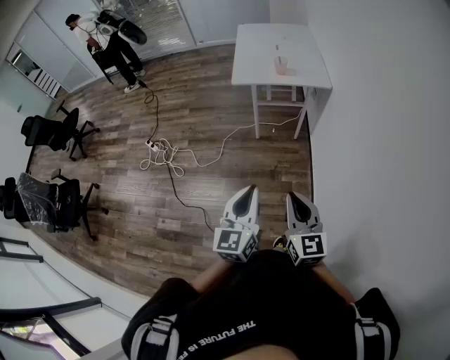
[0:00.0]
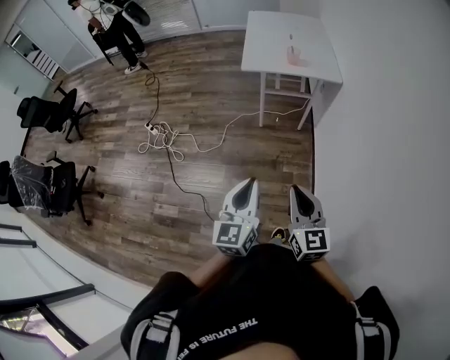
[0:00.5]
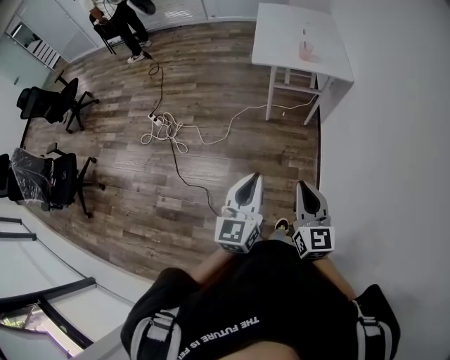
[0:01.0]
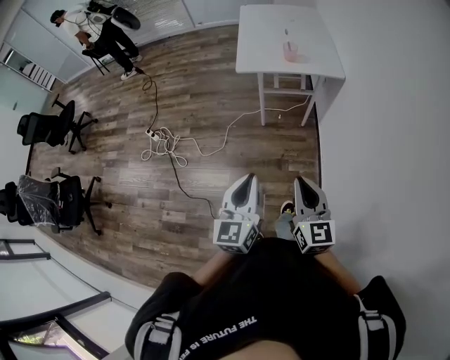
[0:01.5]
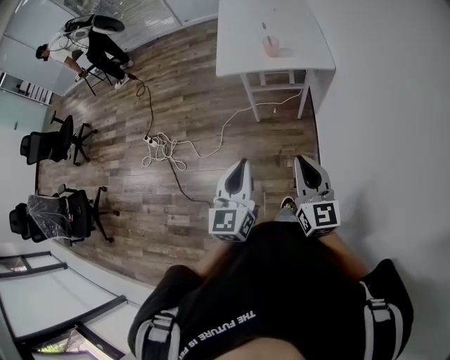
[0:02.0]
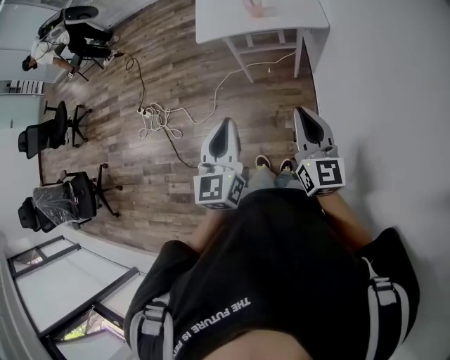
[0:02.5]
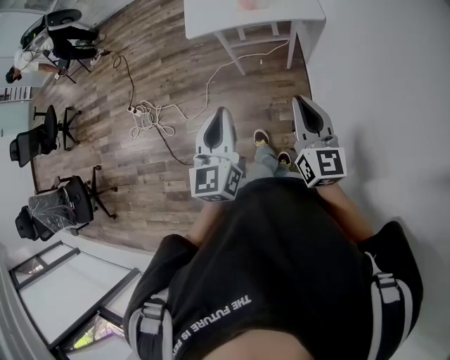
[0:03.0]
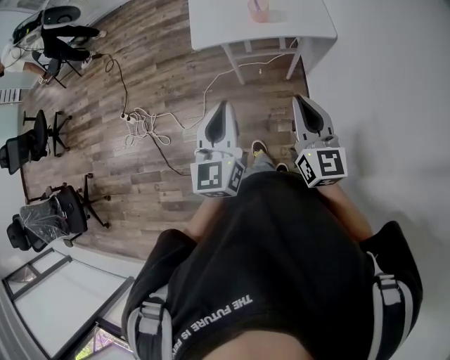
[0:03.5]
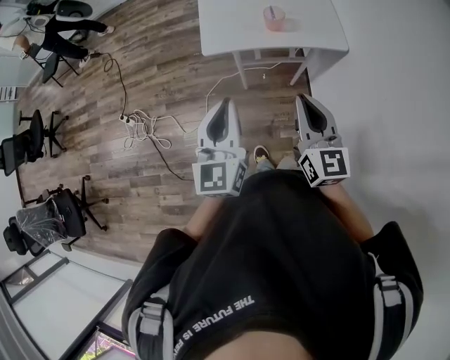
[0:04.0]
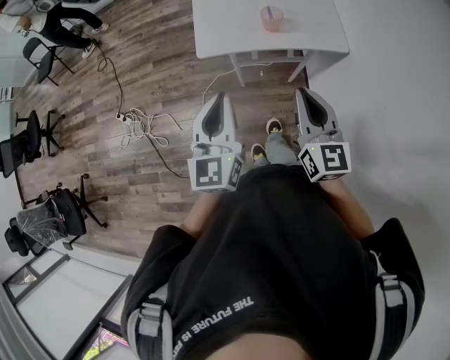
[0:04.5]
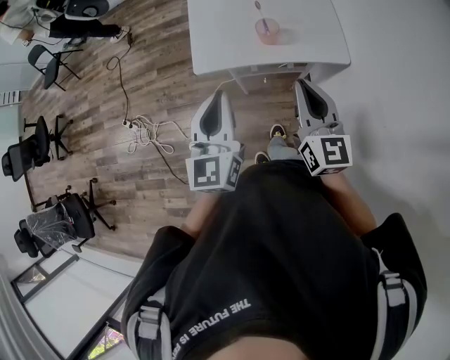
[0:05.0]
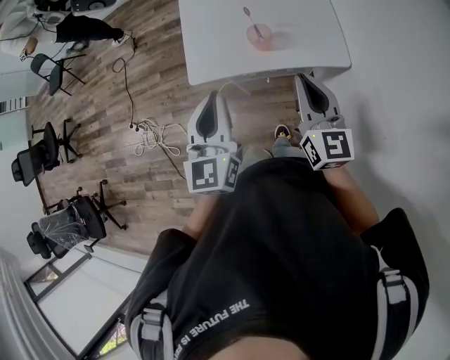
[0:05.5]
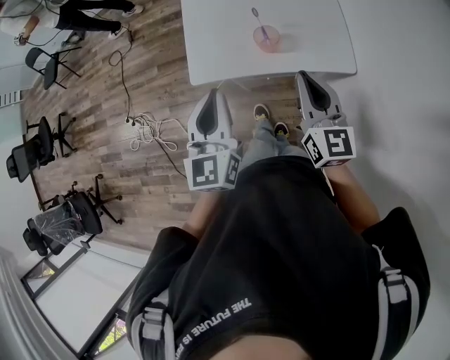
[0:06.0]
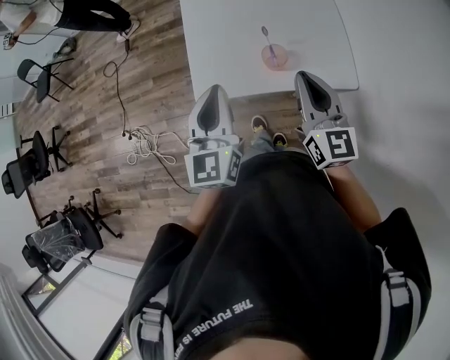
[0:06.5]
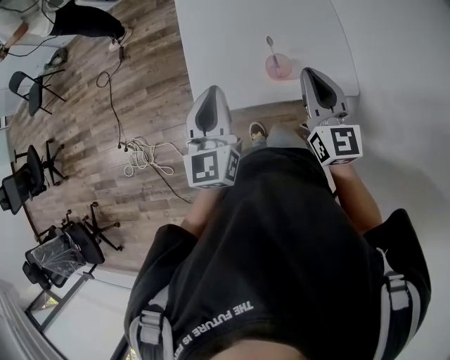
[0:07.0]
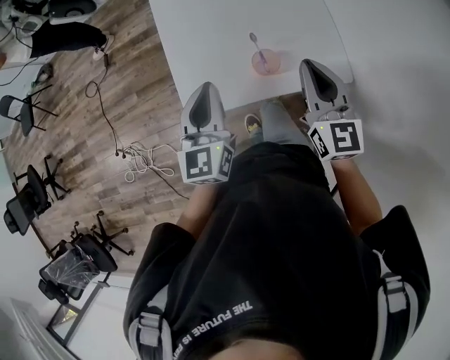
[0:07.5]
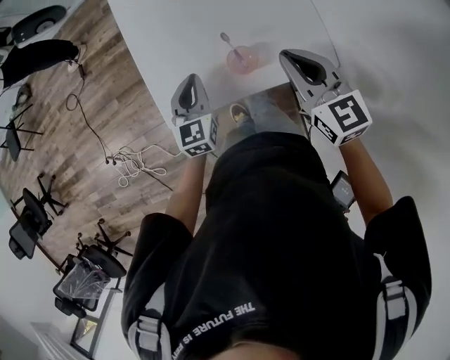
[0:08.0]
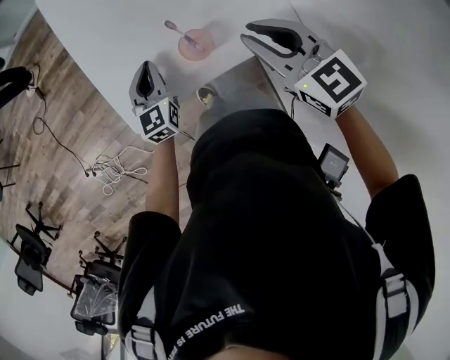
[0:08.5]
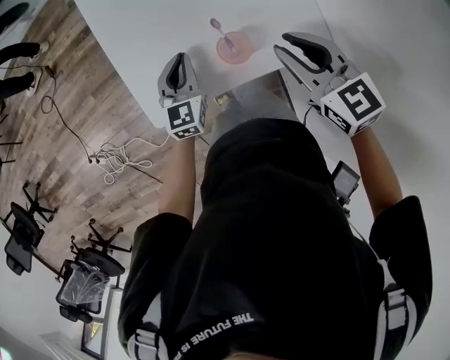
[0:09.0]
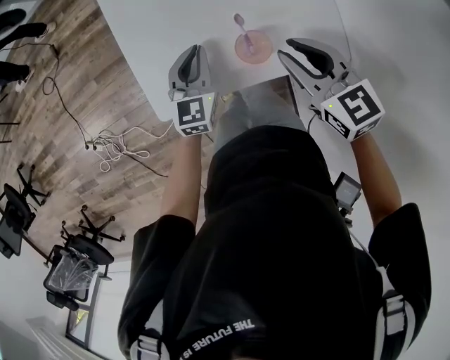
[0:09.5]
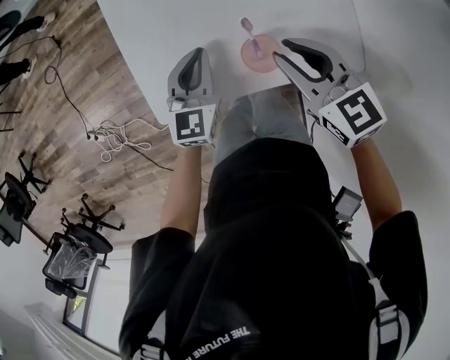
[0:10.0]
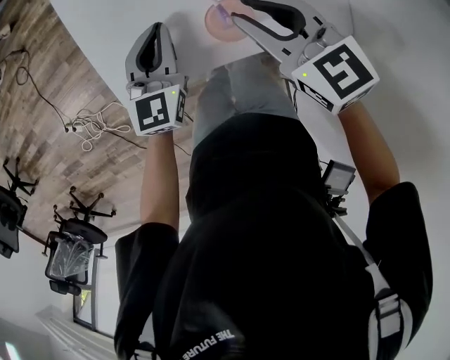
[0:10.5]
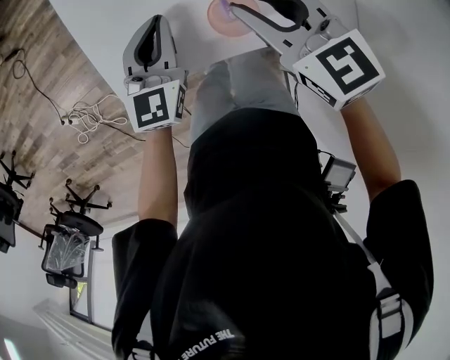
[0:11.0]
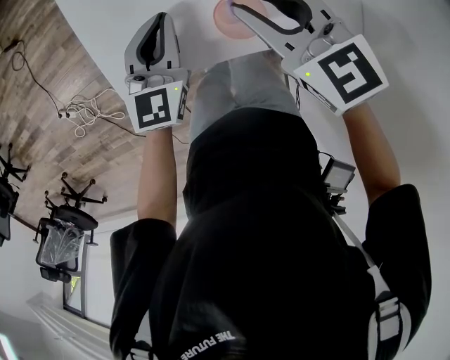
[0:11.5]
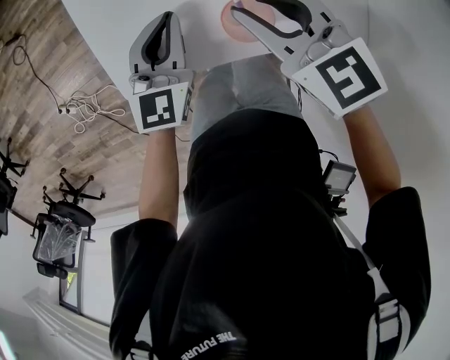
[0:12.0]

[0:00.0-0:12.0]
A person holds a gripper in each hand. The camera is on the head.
0.0 to 2.0 s: The grippers both shift forward by approximately 20 cm.
2.0 to 4.0 s: Both grippers travel together forward, roughly 25 cm.
4.0 to 6.0 s: Both grippers travel together forward, about 20 cm.
6.0 to 8.0 s: The left gripper goes some 25 cm forward and downward, while the right gripper heads forward, covering approximately 15 cm.
8.0 to 10.0 s: The left gripper goes approximately 5 cm downward; the right gripper shifts about 10 cm downward, and opens up.
10.0 to 12.0 s: The right gripper changes place by about 5 cm.

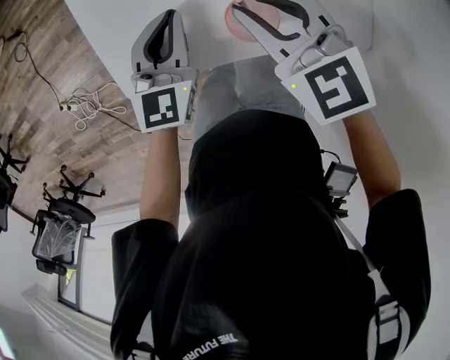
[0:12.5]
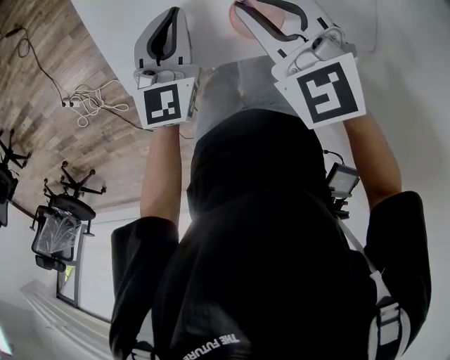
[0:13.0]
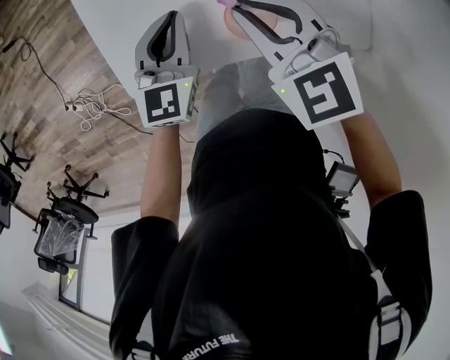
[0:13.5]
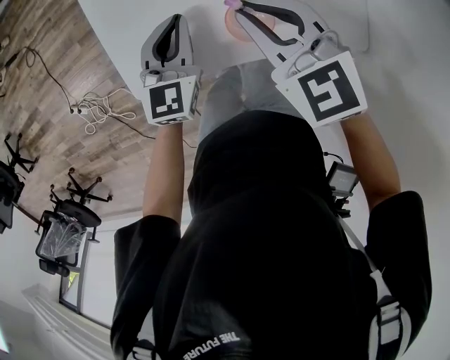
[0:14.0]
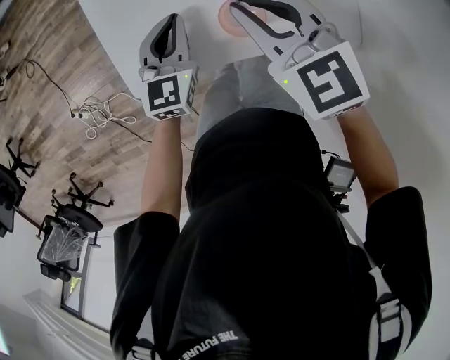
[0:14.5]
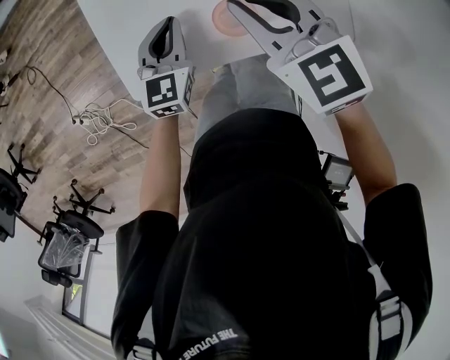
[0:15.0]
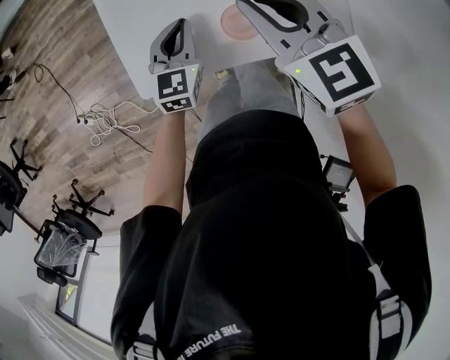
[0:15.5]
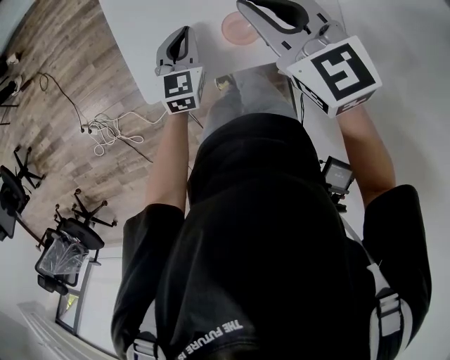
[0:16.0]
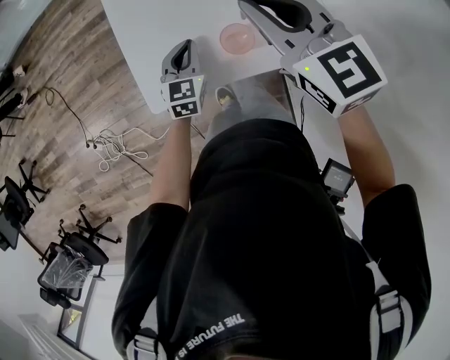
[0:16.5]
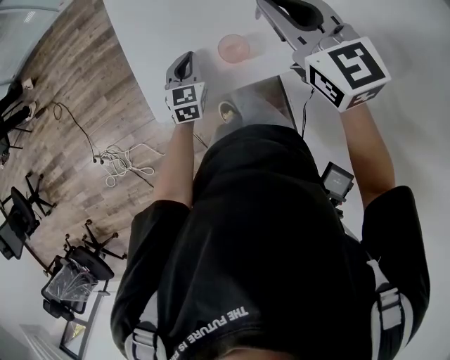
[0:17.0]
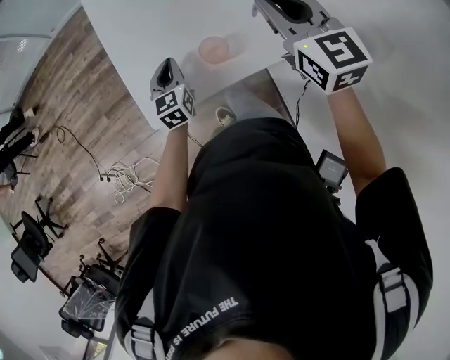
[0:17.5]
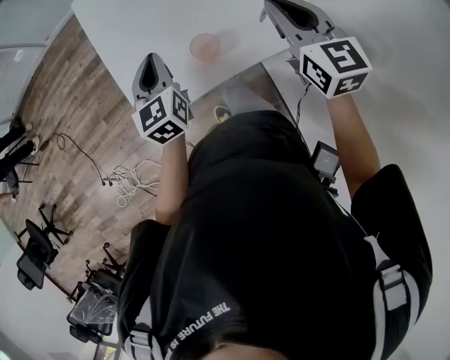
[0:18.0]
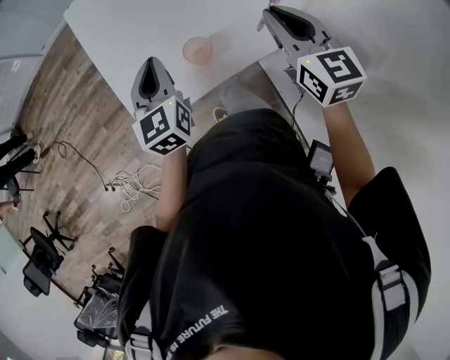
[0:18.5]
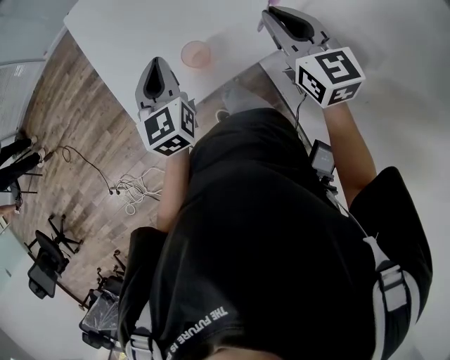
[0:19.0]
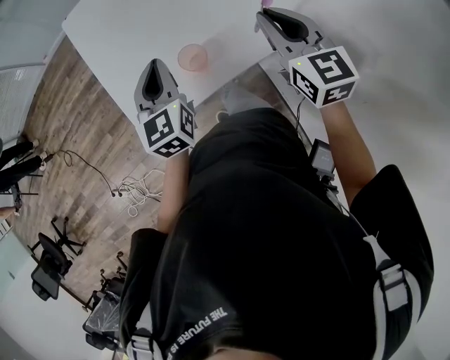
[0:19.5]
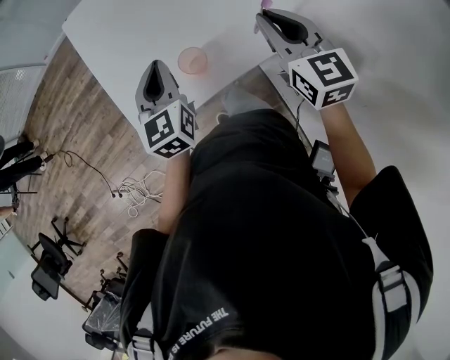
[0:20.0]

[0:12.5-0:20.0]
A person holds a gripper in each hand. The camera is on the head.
12.5 to 14.5 s: There are only small adjustments of the grippers.
14.5 to 16.5 s: The right gripper goes roughly 10 cm upward.
16.5 to 18.0 s: The right gripper moves to the right, some 15 cm, and changes its angle by about 20 degrees. The left gripper heads upward, covering some 20 cm.
18.0 to 20.0 s: The left gripper goes approximately 5 cm to the right.

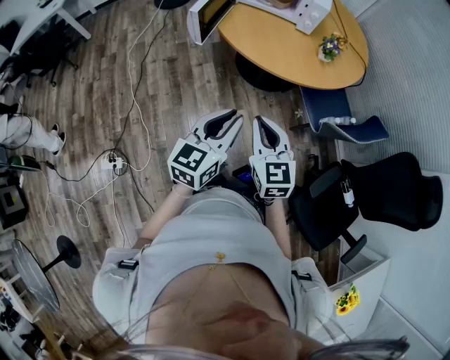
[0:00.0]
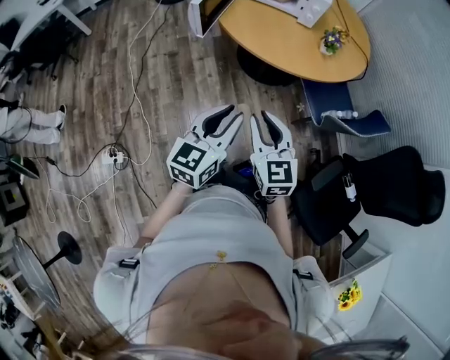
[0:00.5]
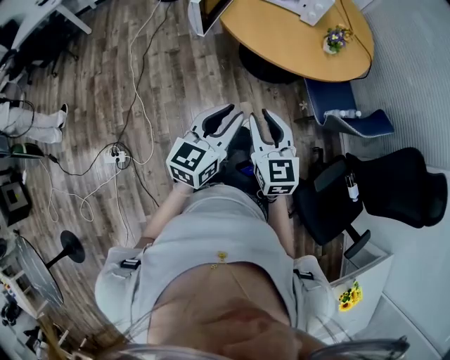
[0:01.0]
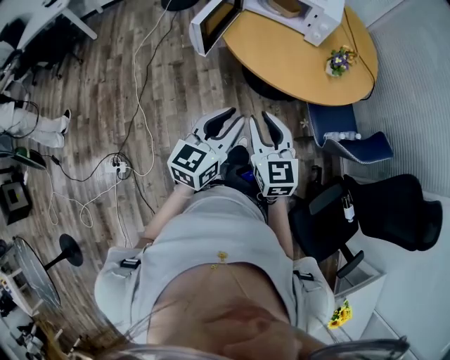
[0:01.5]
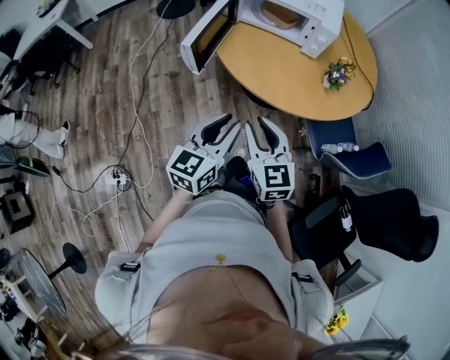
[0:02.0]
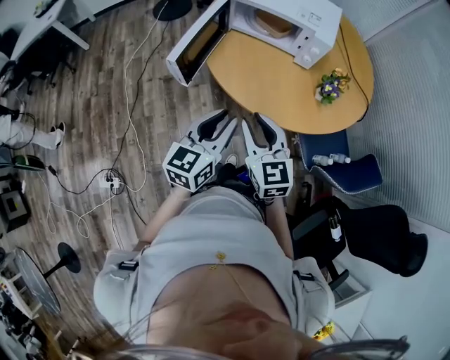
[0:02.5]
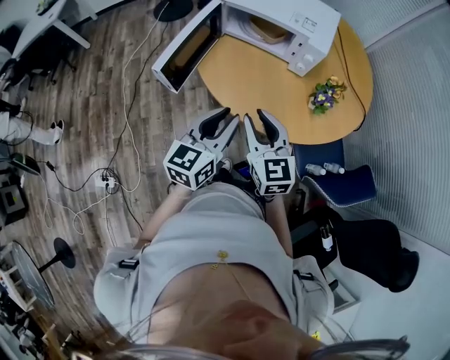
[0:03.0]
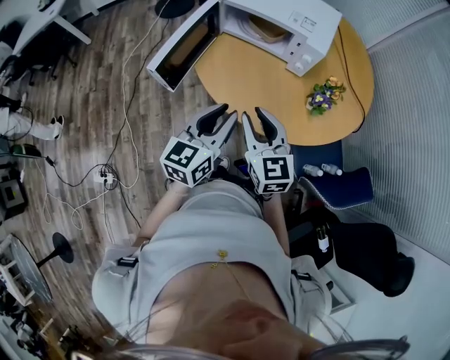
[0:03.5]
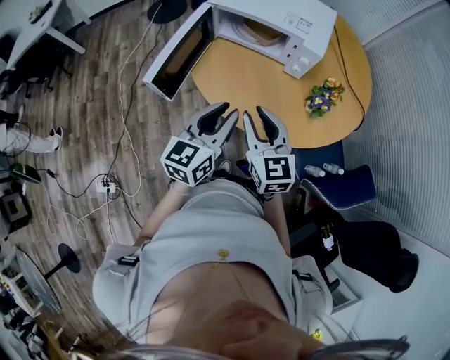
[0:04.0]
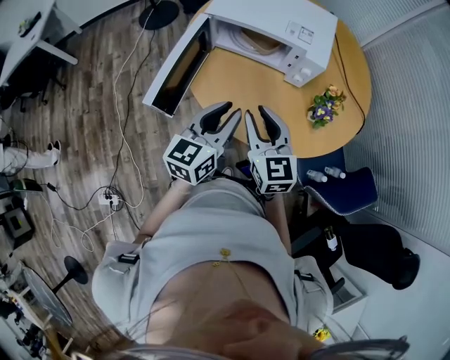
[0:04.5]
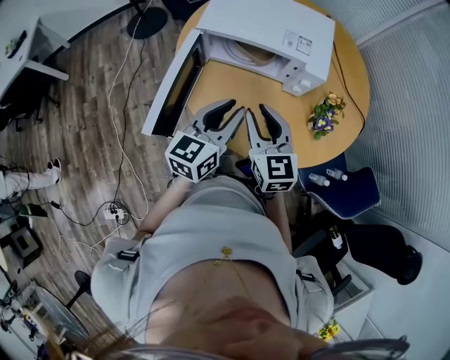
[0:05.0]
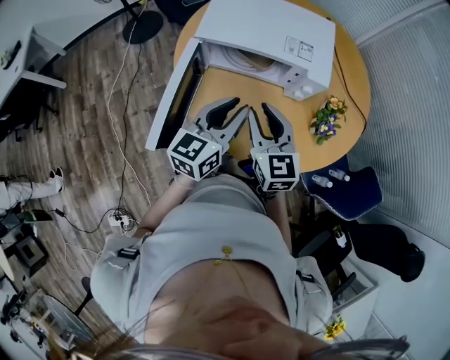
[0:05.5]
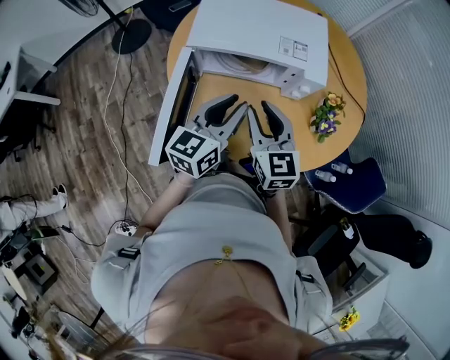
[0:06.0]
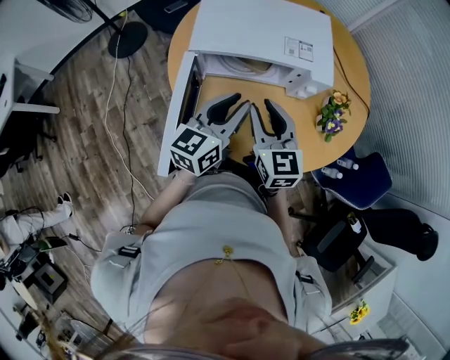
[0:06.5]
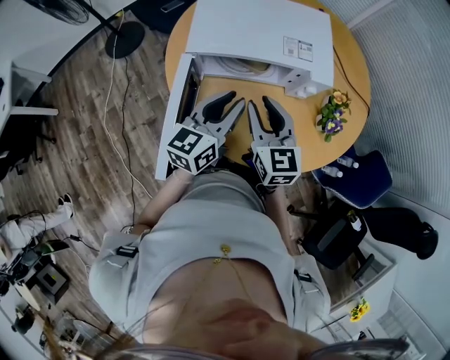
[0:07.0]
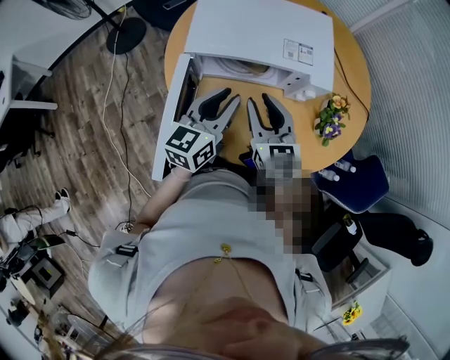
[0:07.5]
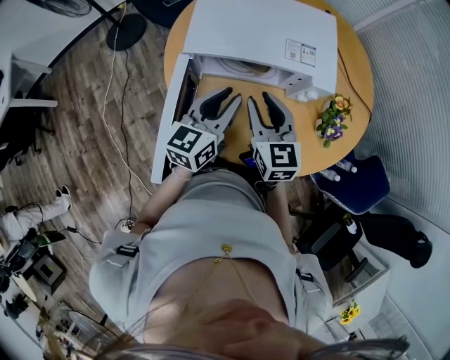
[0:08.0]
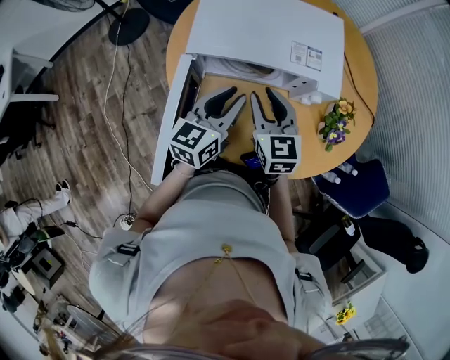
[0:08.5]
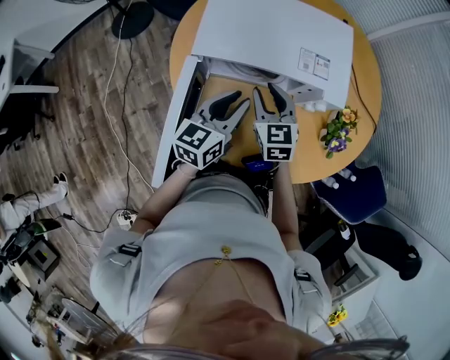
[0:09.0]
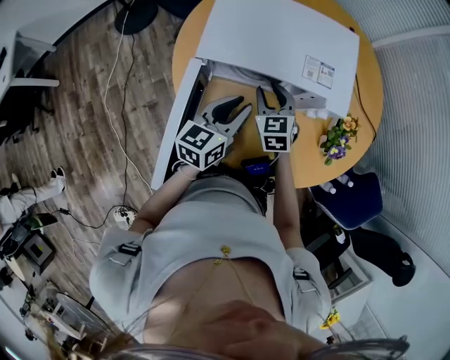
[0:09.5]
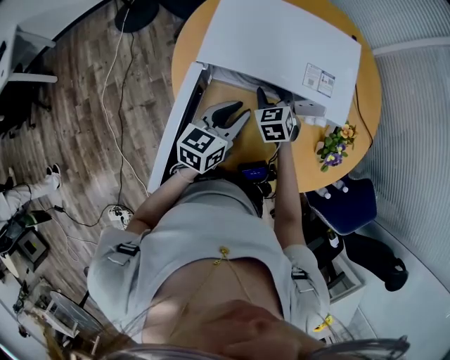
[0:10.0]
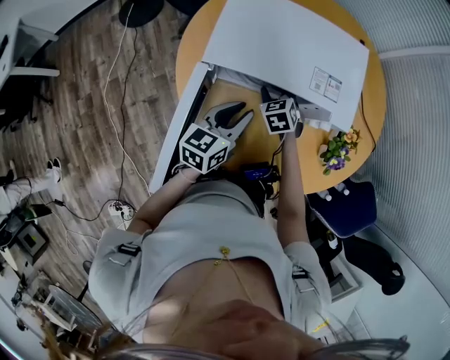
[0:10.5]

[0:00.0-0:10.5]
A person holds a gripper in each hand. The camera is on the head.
0.0 to 2.0 s: Both grippers travel together forward, roughly 15 cm. The right gripper opens.
2.0 to 4.0 s: Both grippers move forward and to the right, approximately 20 cm.
4.0 to 6.5 s: The two grippers go some 20 cm forward. The left gripper rotates about 20 degrees.
6.5 to 8.5 s: The left gripper changes place by roughly 5 cm. The right gripper travels forward by some 5 cm.
8.5 to 10.5 s: The right gripper shifts some 20 cm downward and forward, and angles its fingers downward, by about 30 degrees; the left gripper heads downward, covering some 5 cm.
